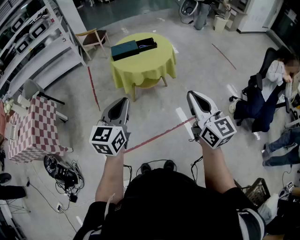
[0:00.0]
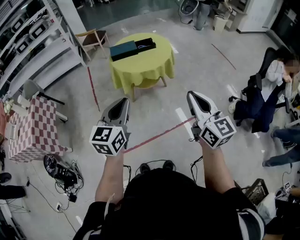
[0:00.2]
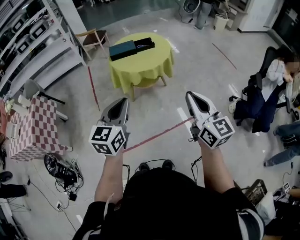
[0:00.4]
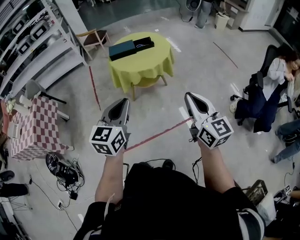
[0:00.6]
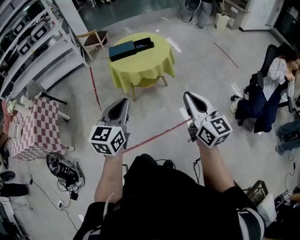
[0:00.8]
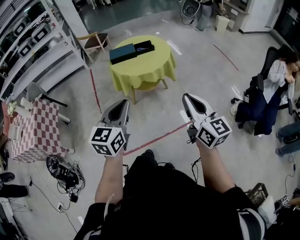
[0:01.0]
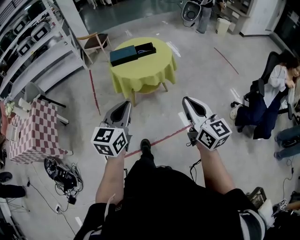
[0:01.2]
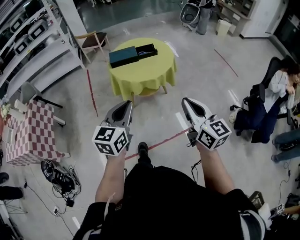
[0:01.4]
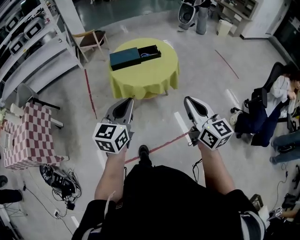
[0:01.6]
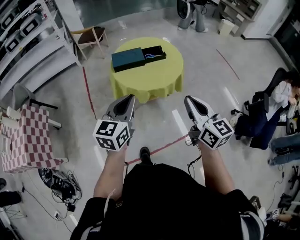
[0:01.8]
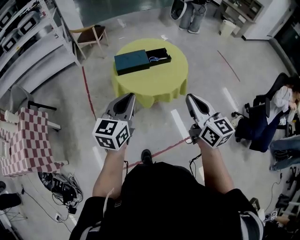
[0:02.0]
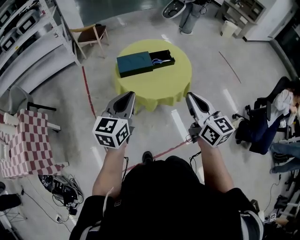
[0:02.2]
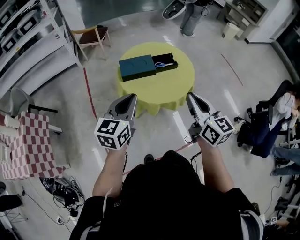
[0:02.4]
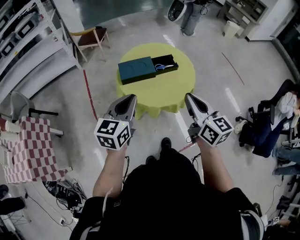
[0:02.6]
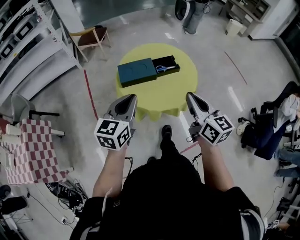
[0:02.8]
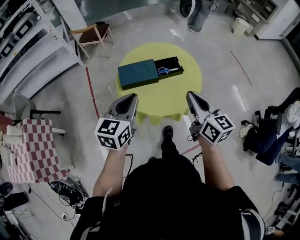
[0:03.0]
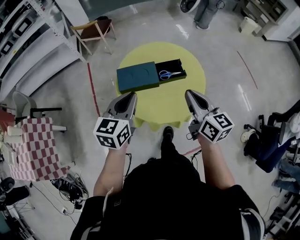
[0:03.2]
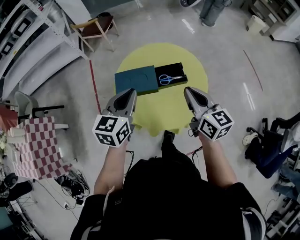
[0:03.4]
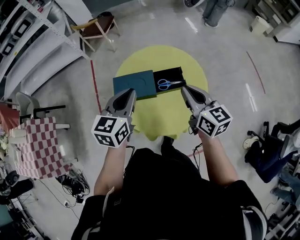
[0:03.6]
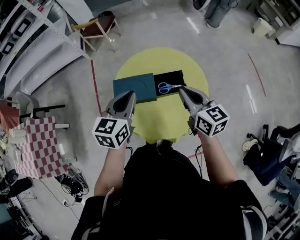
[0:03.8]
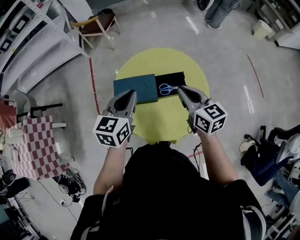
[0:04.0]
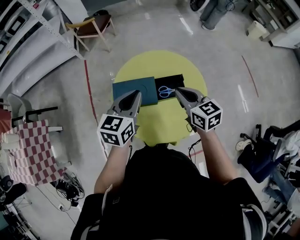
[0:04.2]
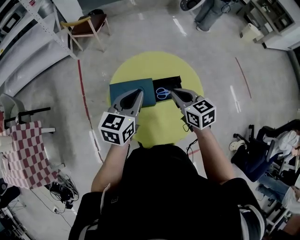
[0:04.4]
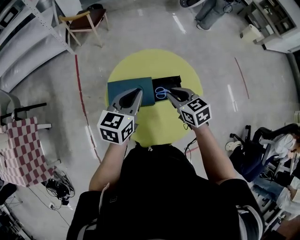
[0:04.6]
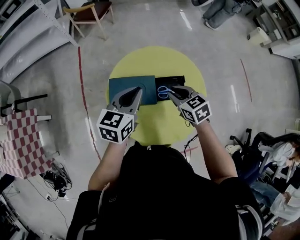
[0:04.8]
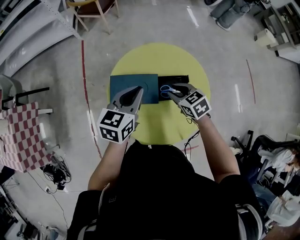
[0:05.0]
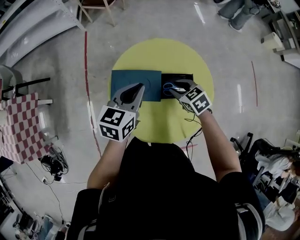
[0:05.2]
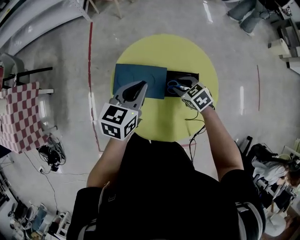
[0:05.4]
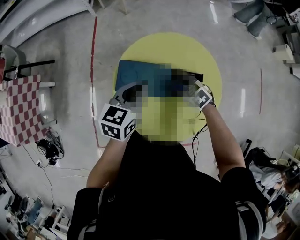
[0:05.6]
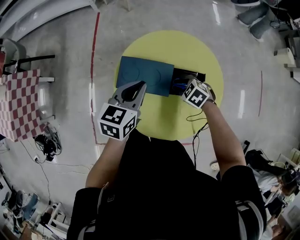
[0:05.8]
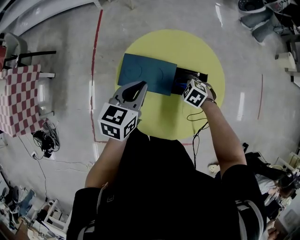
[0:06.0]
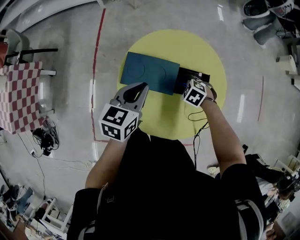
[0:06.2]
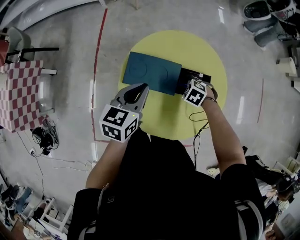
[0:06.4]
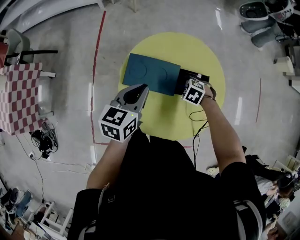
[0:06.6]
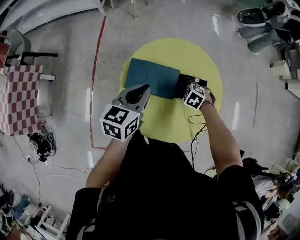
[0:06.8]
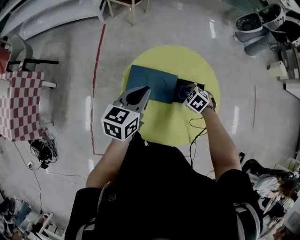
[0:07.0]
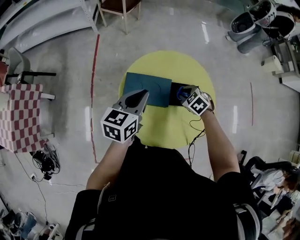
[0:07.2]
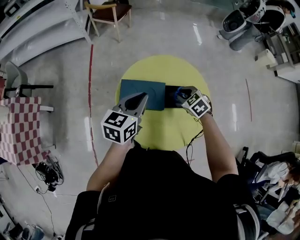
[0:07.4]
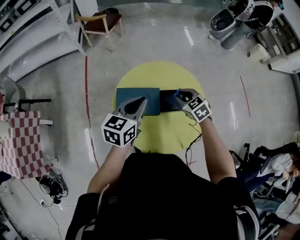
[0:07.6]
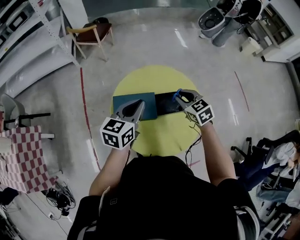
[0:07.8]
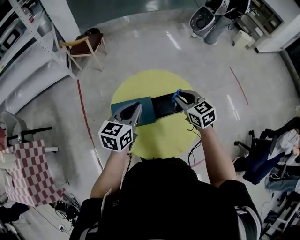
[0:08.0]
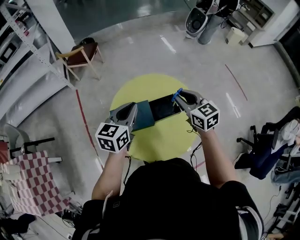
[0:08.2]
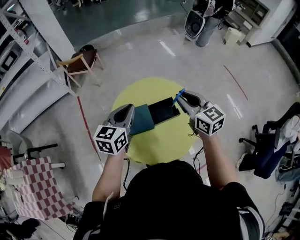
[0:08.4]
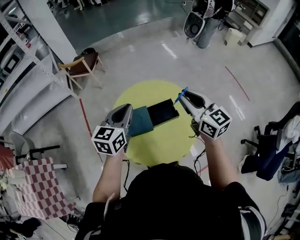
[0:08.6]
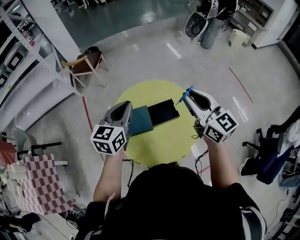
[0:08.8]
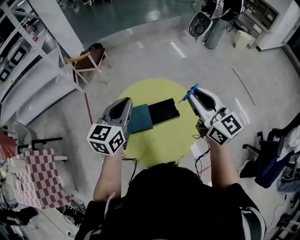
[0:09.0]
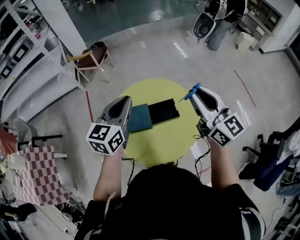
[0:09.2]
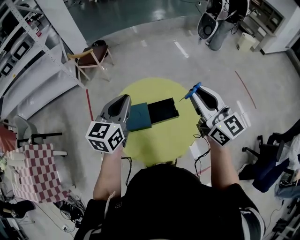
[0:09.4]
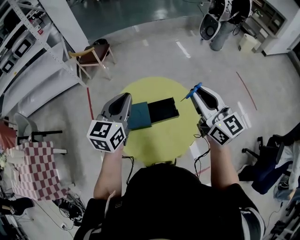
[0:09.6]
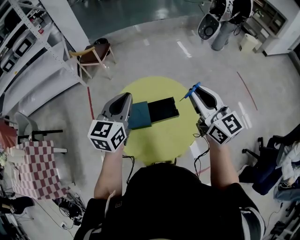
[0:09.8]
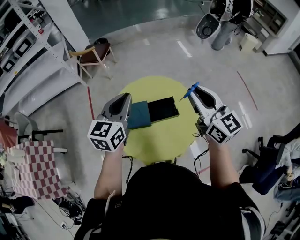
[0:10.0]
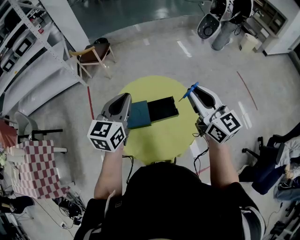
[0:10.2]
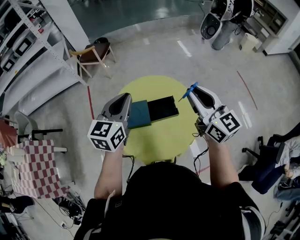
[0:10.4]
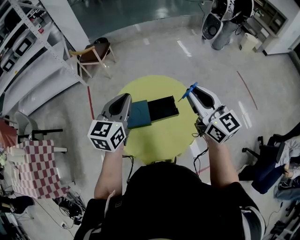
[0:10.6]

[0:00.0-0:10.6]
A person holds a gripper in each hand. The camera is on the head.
0.0 to 1.6 s: The grippers both shift forward by roughly 15 cm.
1.6 to 3.0 s: Both grippers travel together forward, about 30 cm.
3.0 to 4.6 s: The left gripper heads forward, covering roughly 20 cm; the right gripper goes roughly 30 cm forward and downward, and points its fingers about 30 degrees further downward.
4.6 to 6.0 s: The right gripper shifts approximately 20 cm downward, angles its fingers downward, by about 30 degrees, and opens its fingers. Meanwhile the left gripper is displaced downward by about 10 cm.
6.0 to 7.6 s: The right gripper moves upward, some 15 cm, and changes its angle by some 40 degrees; the left gripper goes some 5 cm upward.
7.6 to 9.0 s: The left gripper shifts roughly 10 cm upward; the right gripper goes roughly 30 cm upward, and points its fingers approximately 50 degrees further upward.
9.0 to 10.6 s: The grippers move only a little.

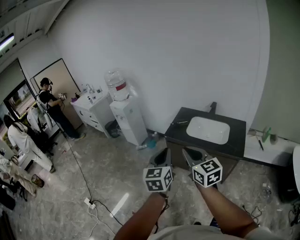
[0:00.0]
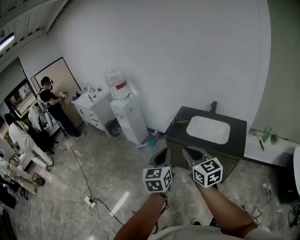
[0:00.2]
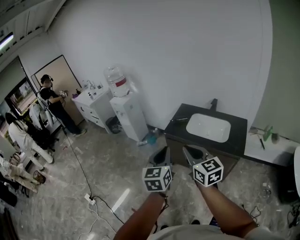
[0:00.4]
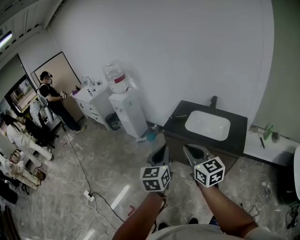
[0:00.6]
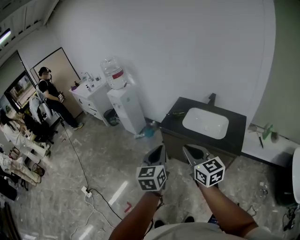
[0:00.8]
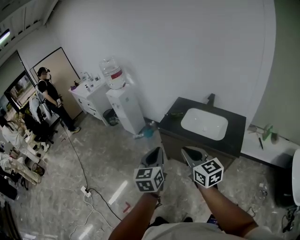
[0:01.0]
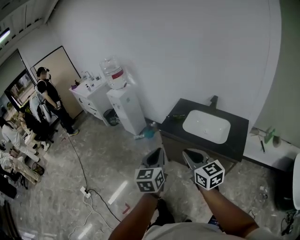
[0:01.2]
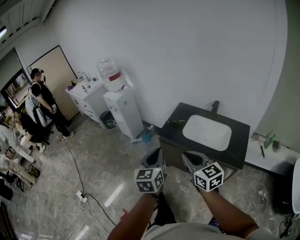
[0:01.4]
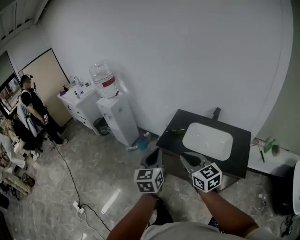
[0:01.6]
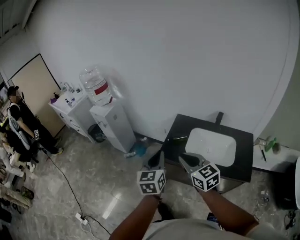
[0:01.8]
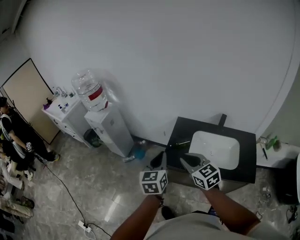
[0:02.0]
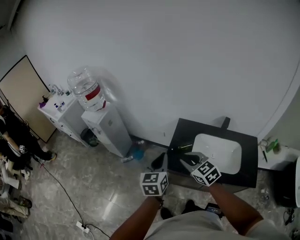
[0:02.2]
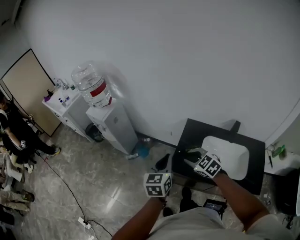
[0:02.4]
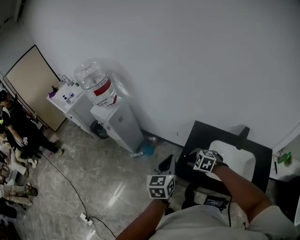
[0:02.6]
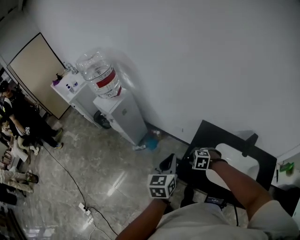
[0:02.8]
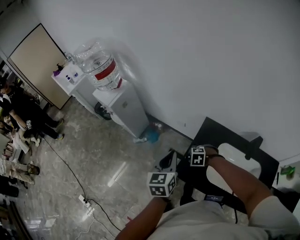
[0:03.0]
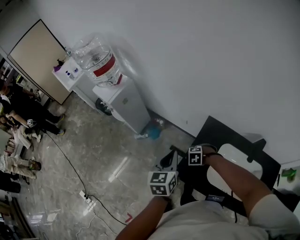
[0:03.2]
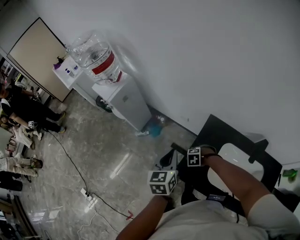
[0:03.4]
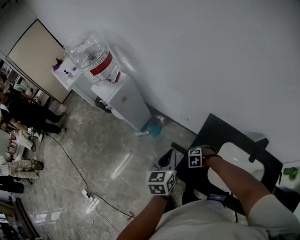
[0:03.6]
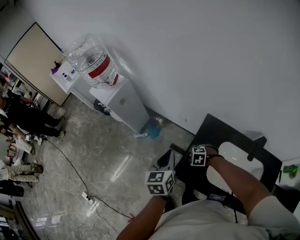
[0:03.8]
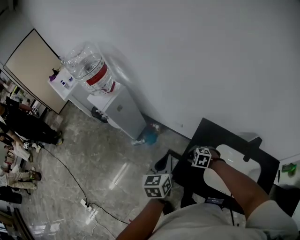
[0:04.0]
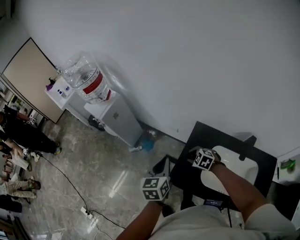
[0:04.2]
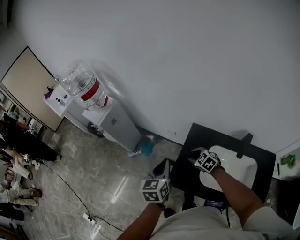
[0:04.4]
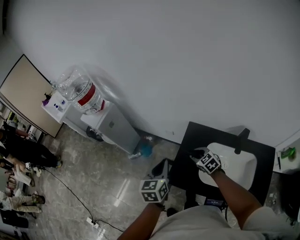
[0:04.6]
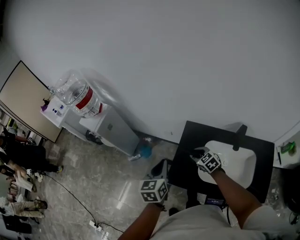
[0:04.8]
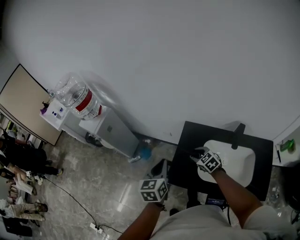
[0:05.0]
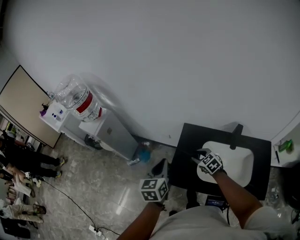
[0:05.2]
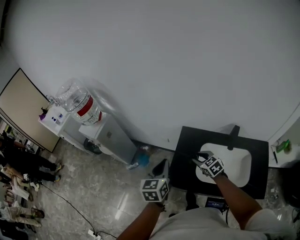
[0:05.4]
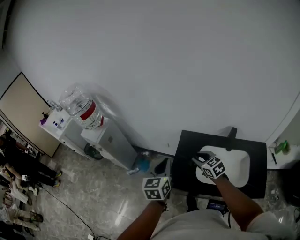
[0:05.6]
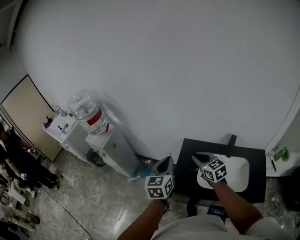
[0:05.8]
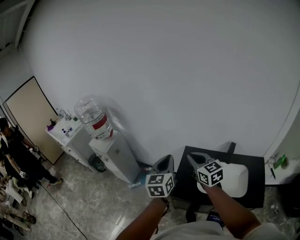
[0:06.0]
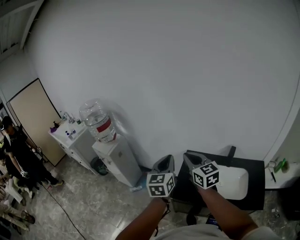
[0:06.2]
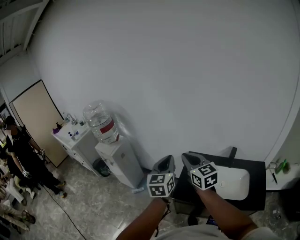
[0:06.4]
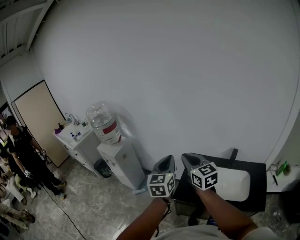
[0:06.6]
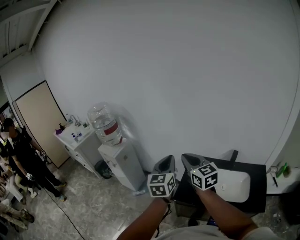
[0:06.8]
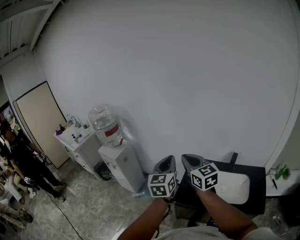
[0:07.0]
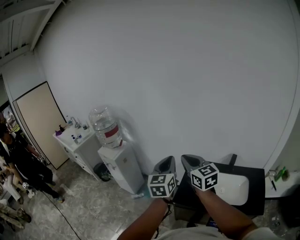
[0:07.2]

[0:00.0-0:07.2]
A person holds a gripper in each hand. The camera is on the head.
0.0 to 1.4 s: The right gripper shifts about 15 cm forward, to the right and downward, while the left gripper shifts approximately 15 cm forward, downward and to the right.
1.4 to 2.8 s: Both grippers are carried forward, about 50 cm. The right gripper travels downward by some 30 cm, tilts its fingers roughly 60 degrees downward, and opens its fingers.
2.8 to 4.4 s: The right gripper moves about 15 cm downward and comes back, and swivels approximately 40 degrees.
4.4 to 5.8 s: The left gripper is displaced upward and backward by approximately 15 cm. Meanwhile the right gripper moves upward and backward, approximately 25 cm, and changes its angle by some 40 degrees.
5.8 to 7.2 s: The right gripper goes about 20 cm upward and to the left; the left gripper heads upward and backward, covering roughly 15 cm.

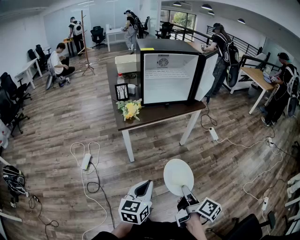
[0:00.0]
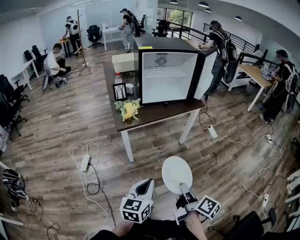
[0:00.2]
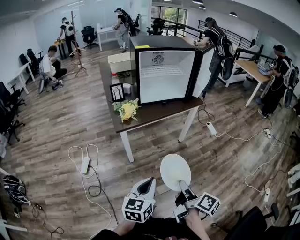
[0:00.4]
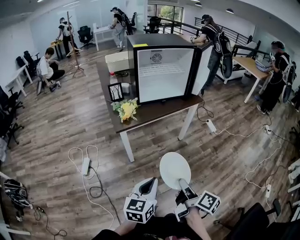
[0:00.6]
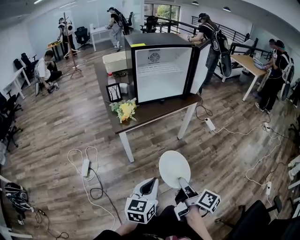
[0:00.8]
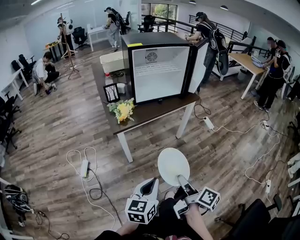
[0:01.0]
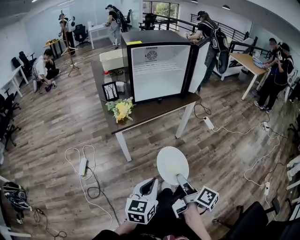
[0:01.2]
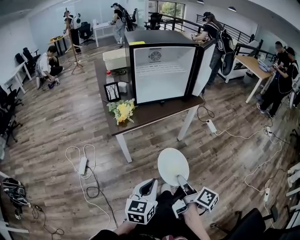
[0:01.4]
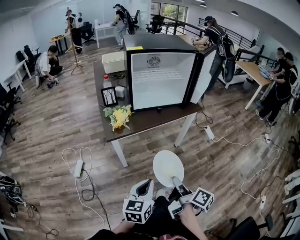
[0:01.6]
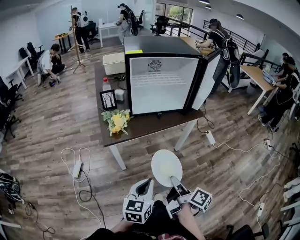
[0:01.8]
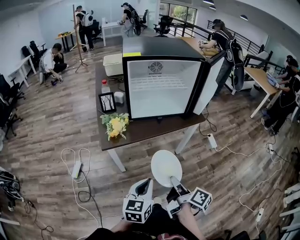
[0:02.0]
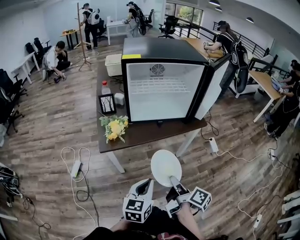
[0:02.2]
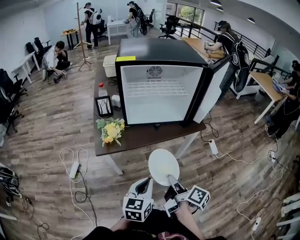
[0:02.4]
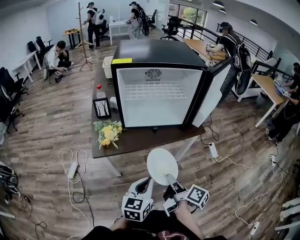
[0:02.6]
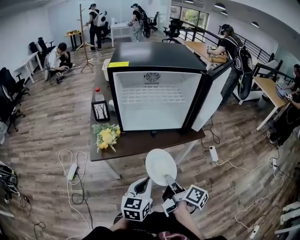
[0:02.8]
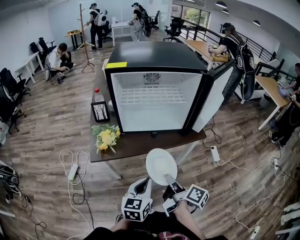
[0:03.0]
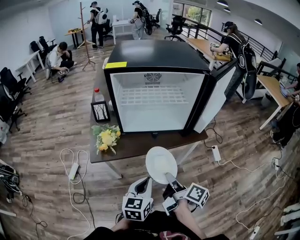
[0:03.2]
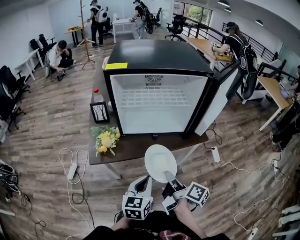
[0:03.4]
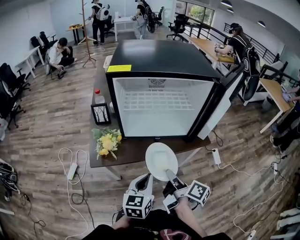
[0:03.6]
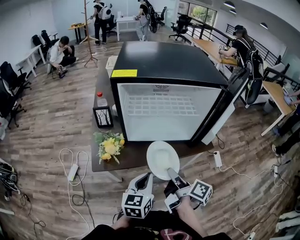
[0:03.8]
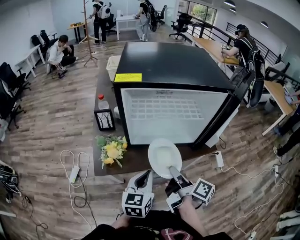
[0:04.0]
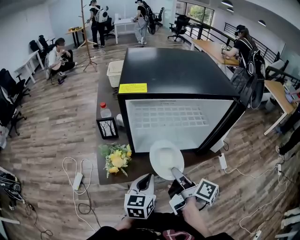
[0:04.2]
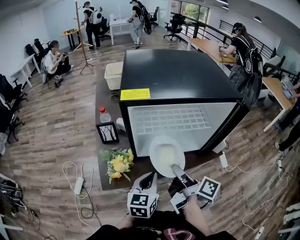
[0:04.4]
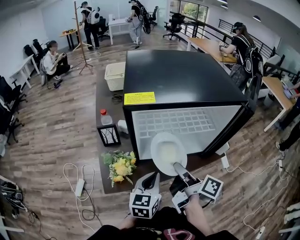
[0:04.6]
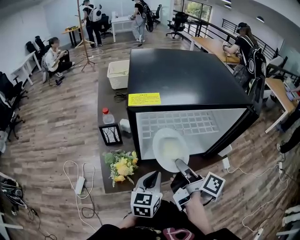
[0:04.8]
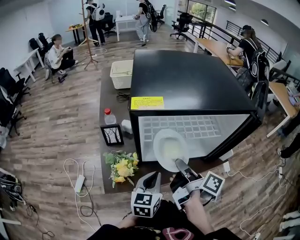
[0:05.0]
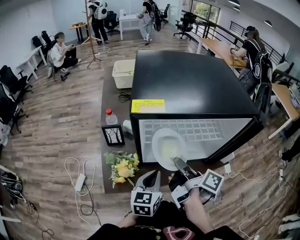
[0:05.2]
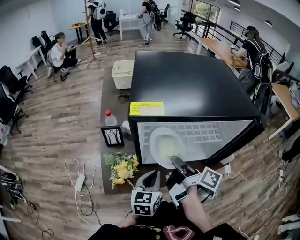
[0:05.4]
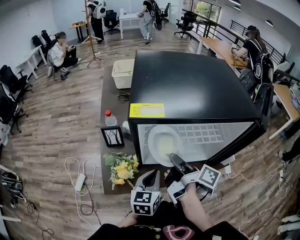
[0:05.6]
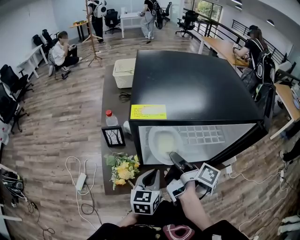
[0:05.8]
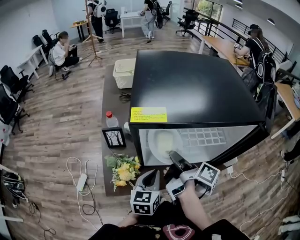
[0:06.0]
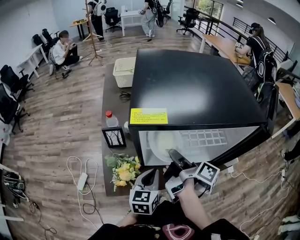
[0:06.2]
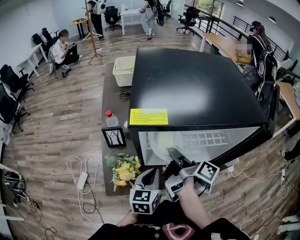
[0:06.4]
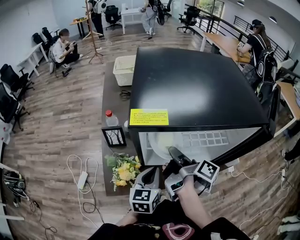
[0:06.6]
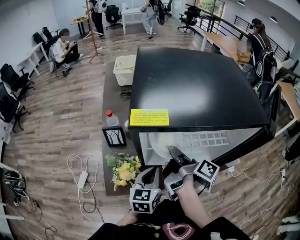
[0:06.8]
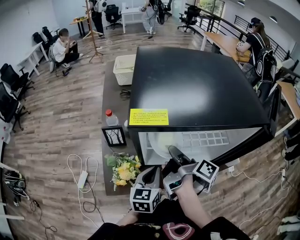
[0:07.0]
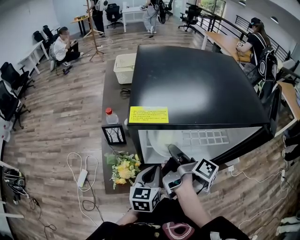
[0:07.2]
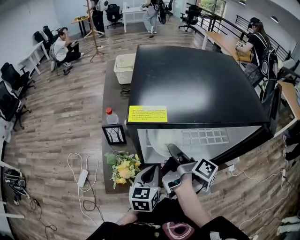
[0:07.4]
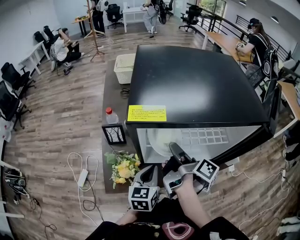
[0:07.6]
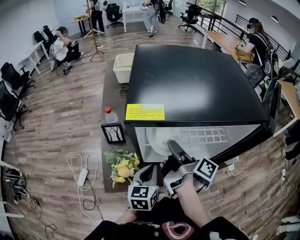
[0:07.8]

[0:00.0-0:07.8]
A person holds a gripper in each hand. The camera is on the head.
0.0 to 1.6 s: The left gripper ends up roughly 15 cm from where it was.
1.6 to 3.2 s: The left gripper shifts by roughly 25 cm.
3.2 to 4.6 s: The left gripper shifts by about 20 cm.
4.6 to 6.2 s: The left gripper moves roughly 10 cm.
